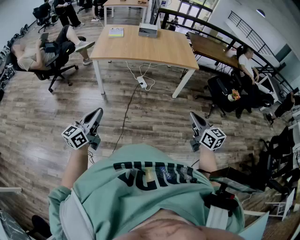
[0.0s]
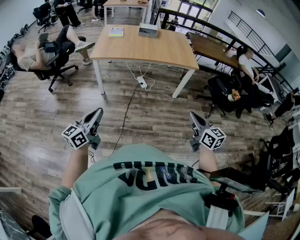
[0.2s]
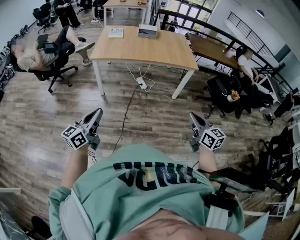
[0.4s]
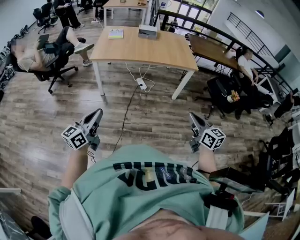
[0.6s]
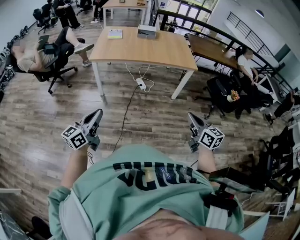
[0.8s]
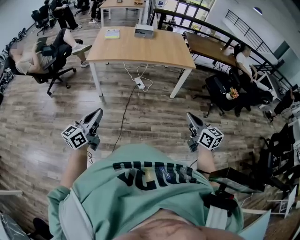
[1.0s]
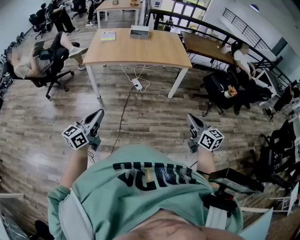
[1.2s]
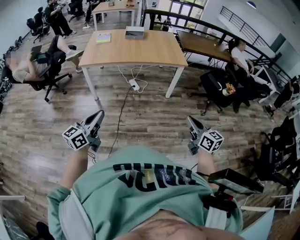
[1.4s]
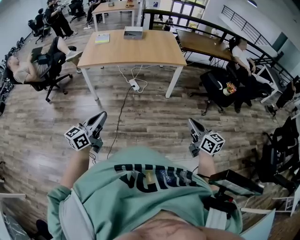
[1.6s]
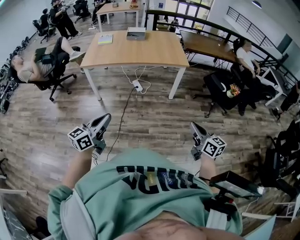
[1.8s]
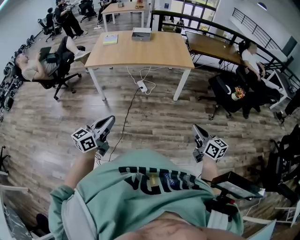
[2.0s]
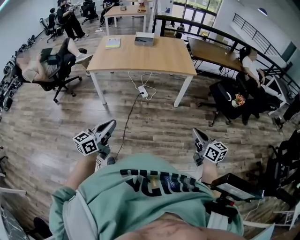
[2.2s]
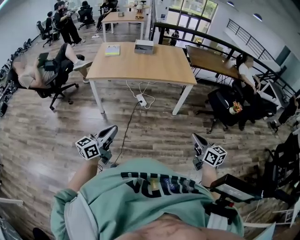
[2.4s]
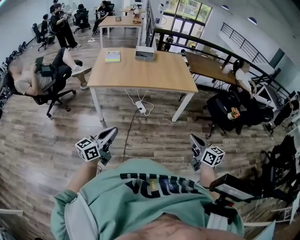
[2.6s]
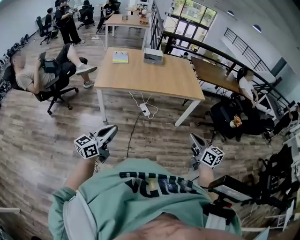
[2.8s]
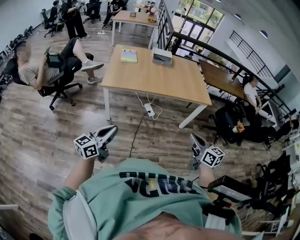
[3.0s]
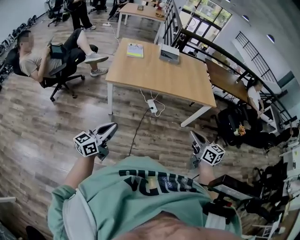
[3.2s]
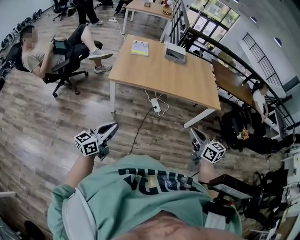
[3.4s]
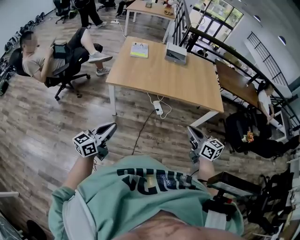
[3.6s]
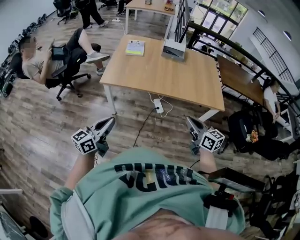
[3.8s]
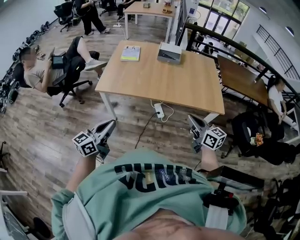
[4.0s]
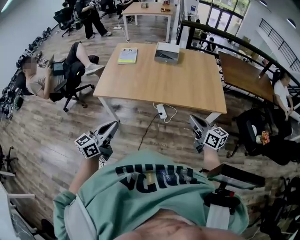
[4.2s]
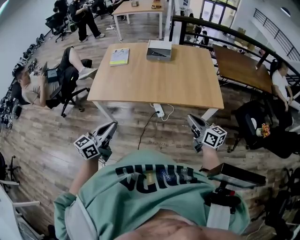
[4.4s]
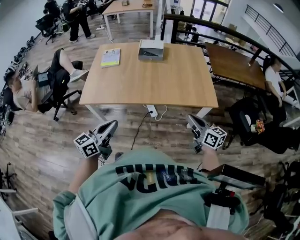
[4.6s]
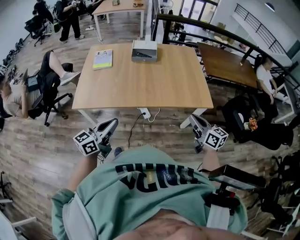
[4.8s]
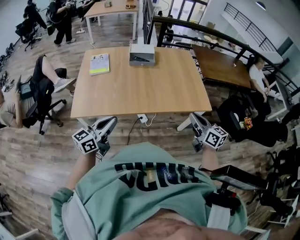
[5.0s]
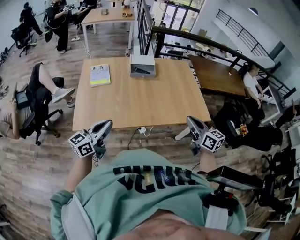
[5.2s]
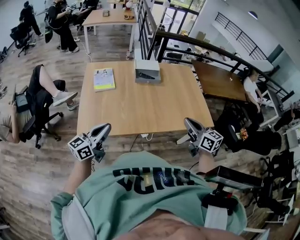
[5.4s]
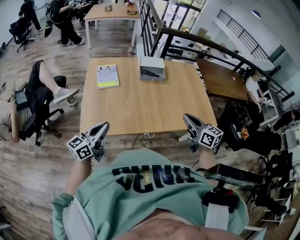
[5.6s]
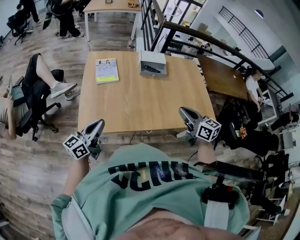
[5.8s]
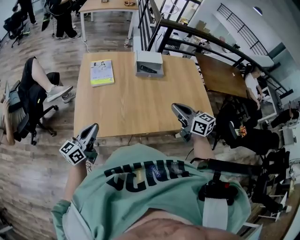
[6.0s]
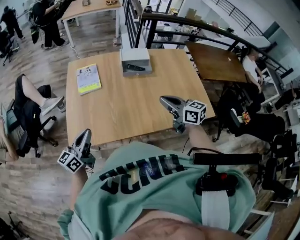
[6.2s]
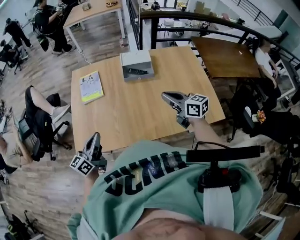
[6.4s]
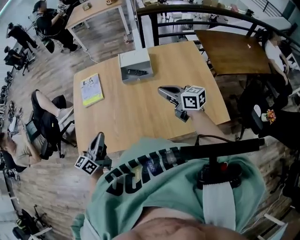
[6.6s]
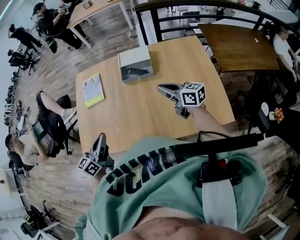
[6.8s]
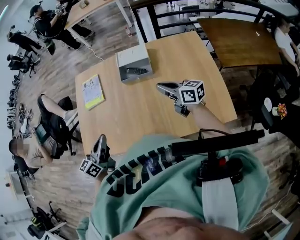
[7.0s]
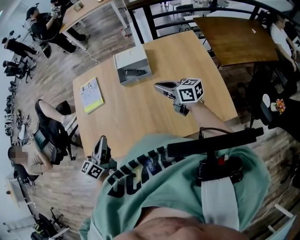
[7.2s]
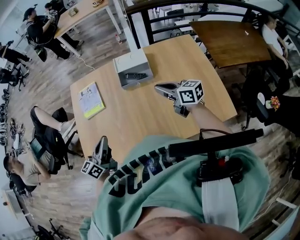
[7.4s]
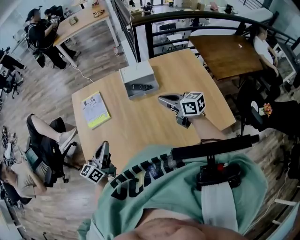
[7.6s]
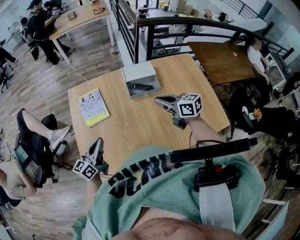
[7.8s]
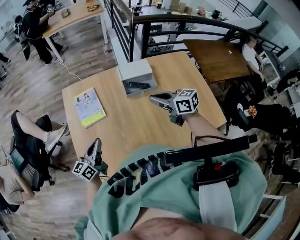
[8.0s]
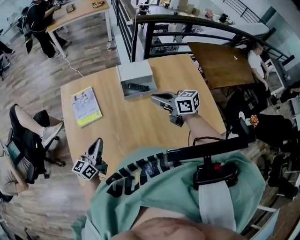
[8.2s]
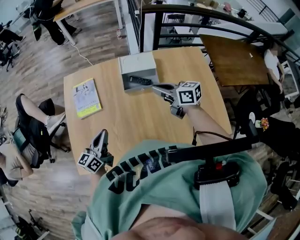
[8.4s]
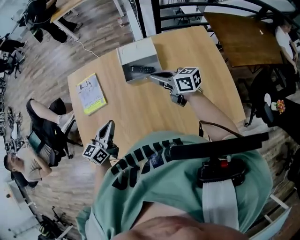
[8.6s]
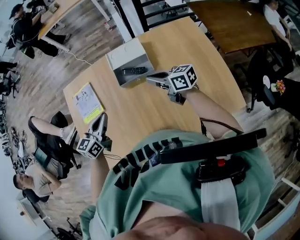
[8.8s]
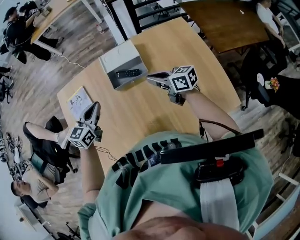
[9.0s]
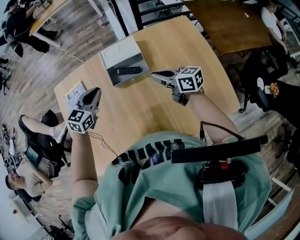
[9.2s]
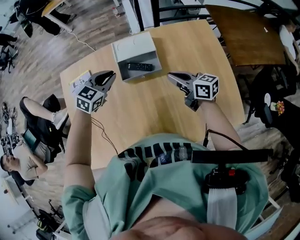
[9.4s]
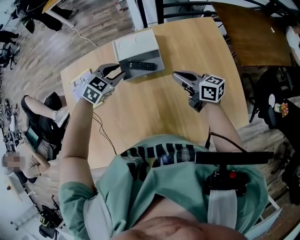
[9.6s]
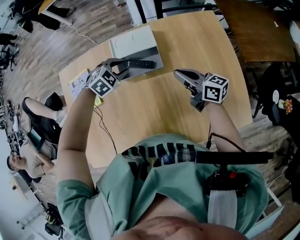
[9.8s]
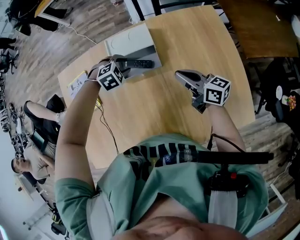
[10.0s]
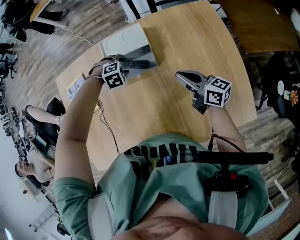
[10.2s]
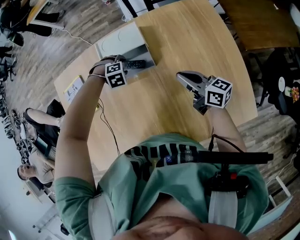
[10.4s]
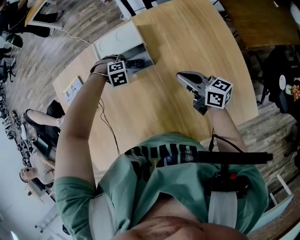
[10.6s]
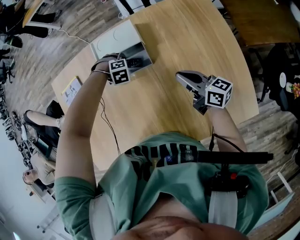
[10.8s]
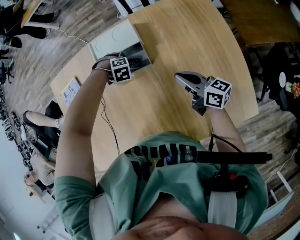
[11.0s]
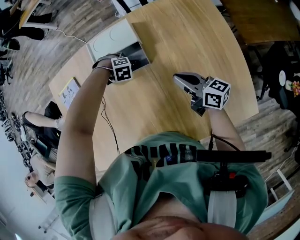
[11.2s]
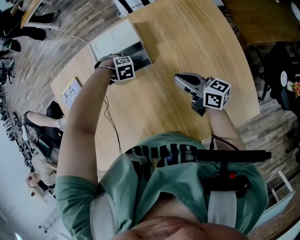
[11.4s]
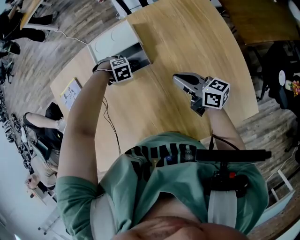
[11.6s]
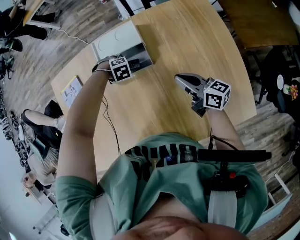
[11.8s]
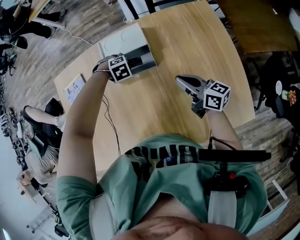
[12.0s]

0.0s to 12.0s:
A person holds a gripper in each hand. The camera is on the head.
0.0s to 1.6s: The two grippers go about 15 cm to the right.
1.6s to 3.0s: Both grippers move to the left and forward, approximately 35 cm.
3.0s to 4.4s: Both grippers move forward and to the right, approximately 35 cm.
4.4s to 6.0s: The grippers both shift to the left and forward by roughly 40 cm.
6.0s to 7.6s: The grippers both shift forward and to the right by roughly 25 cm.
7.6s to 9.0s: The left gripper heads forward and to the right, covering roughly 25 cm, and changes its angle by roughly 30 degrees. The right gripper travels forward, downward and to the right by approximately 15 cm.
9.0s to 10.4s: The right gripper shifts by roughly 15 cm, while the left gripper heads downward, covering approximately 25 cm, tips its fingers downward by roughly 60 degrees, and opens its fingers.

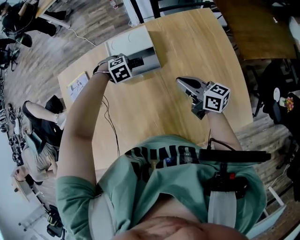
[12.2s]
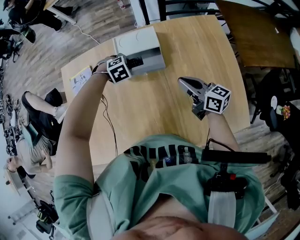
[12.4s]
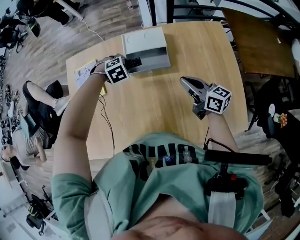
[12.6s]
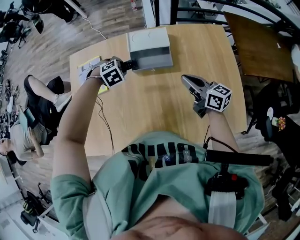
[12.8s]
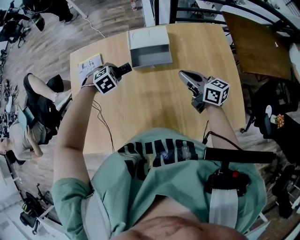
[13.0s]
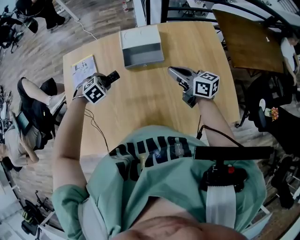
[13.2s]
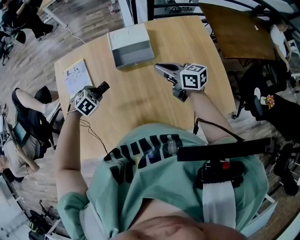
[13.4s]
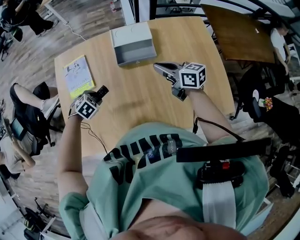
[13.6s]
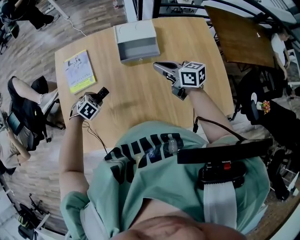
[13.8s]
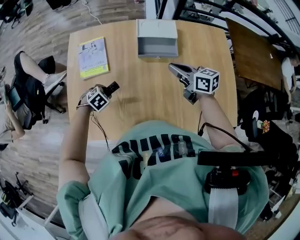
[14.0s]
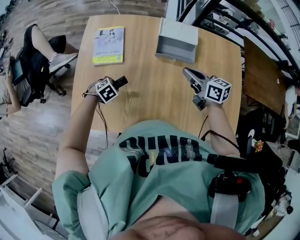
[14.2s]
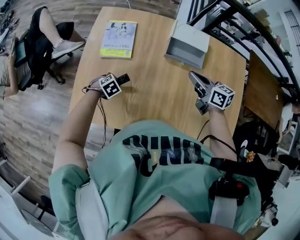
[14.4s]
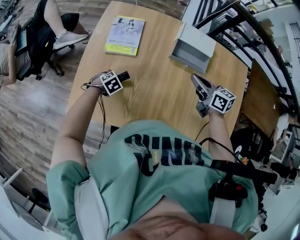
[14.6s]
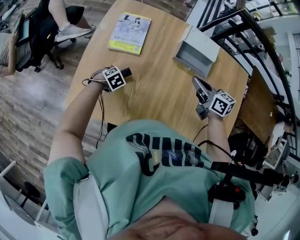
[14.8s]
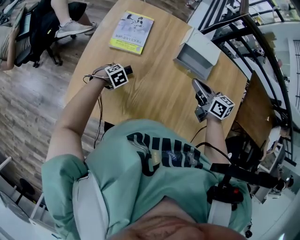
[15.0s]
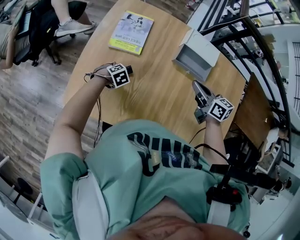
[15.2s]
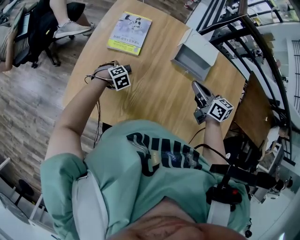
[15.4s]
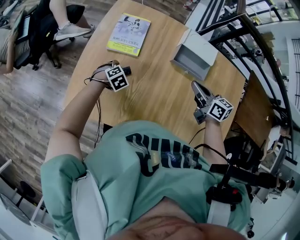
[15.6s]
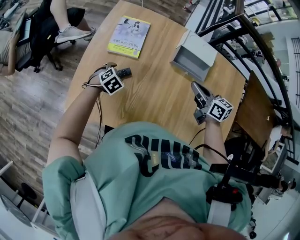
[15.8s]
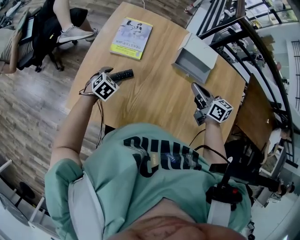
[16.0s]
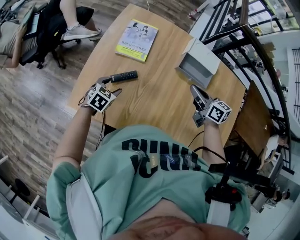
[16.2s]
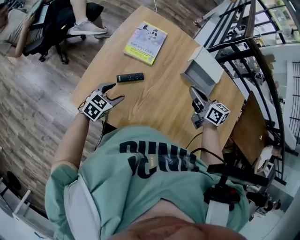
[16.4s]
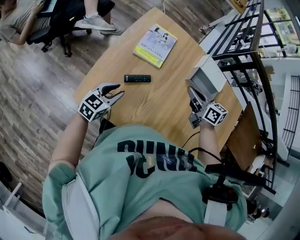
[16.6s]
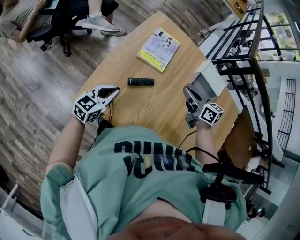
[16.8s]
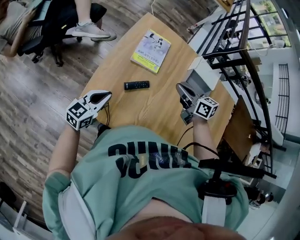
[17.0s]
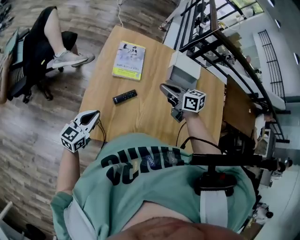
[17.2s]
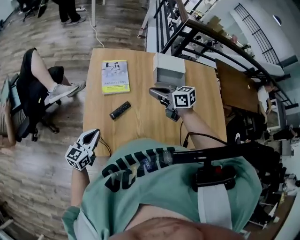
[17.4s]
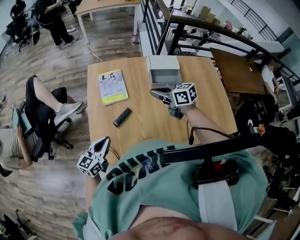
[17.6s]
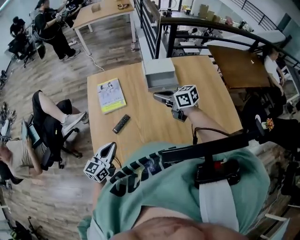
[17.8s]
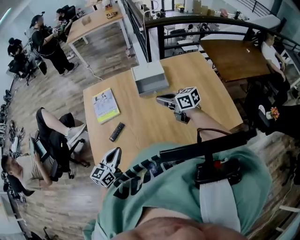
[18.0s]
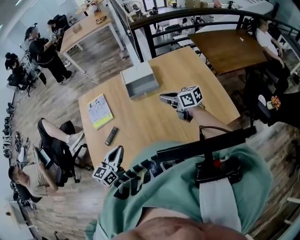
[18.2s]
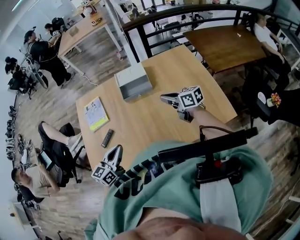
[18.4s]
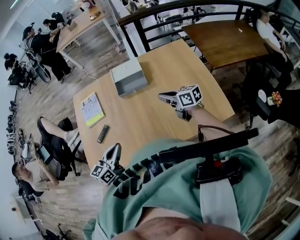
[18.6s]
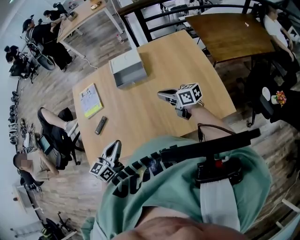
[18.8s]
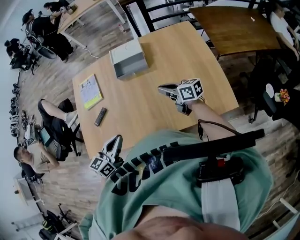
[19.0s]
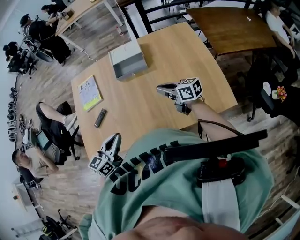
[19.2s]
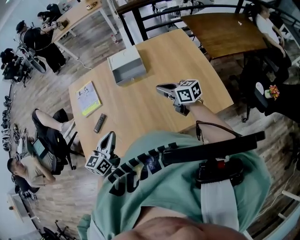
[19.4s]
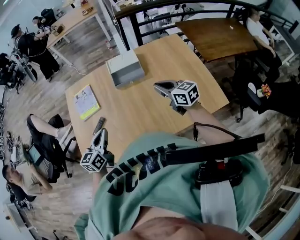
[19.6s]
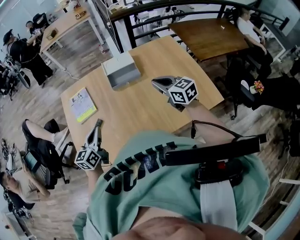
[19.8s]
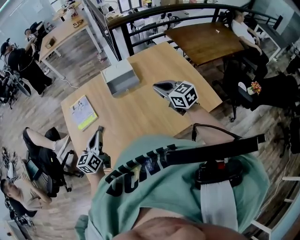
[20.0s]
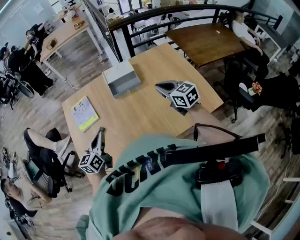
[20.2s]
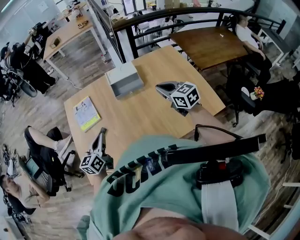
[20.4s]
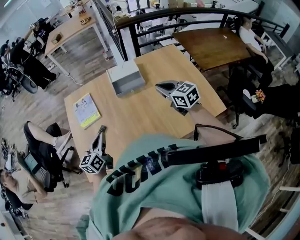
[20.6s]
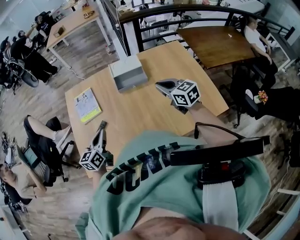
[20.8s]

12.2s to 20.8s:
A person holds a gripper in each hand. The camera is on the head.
12.2s to 13.6s: The right gripper ends up approximately 15 cm from where it was. The left gripper moves about 10 cm upward and comes back, and swivels some 30 degrees.
13.6s to 15.0s: The right gripper ends up roughly 10 cm from where it was. Meanwhile the left gripper ends up roughly 15 cm from where it was, and changes its angle by roughly 20 degrees.
15.0s to 16.6s: The left gripper shifts roughly 15 cm upward, tilts its fingers about 50 degrees upward, and opens and closes again. The right gripper ends up approximately 10 cm from where it was.
16.6s to 18.0s: The left gripper shifts roughly 20 cm upward, to the right and backward, changes its angle by some 20 degrees, and closes; the right gripper goes some 20 cm to the right, backward and upward.
18.0s to 19.4s: Both grippers travel together to the right, about 15 cm.
19.4s to 20.8s: The left gripper shifts roughly 10 cm to the left and forward, while the right gripper shifts some 10 cm upward, and rotates approximately 30 degrees.

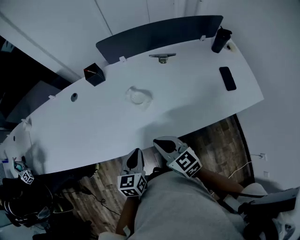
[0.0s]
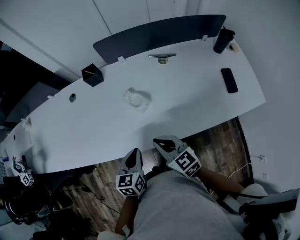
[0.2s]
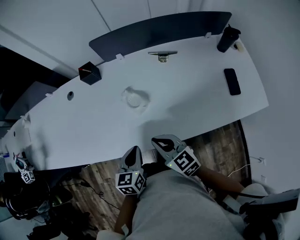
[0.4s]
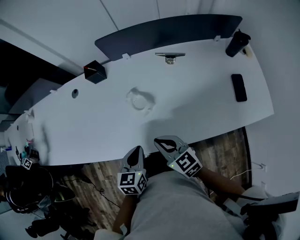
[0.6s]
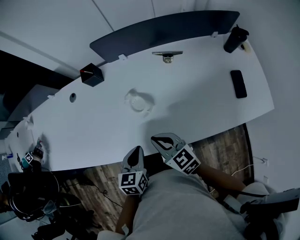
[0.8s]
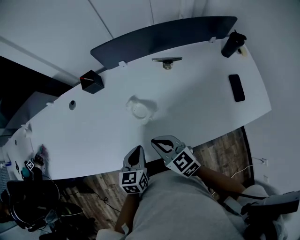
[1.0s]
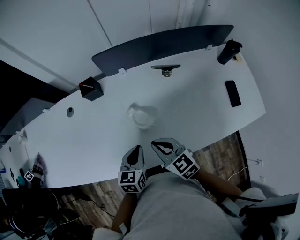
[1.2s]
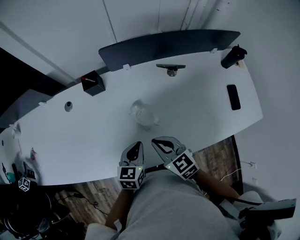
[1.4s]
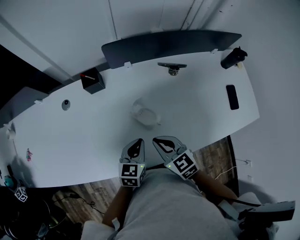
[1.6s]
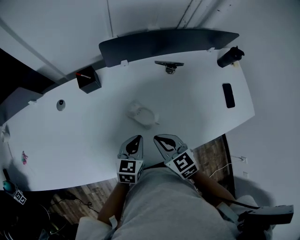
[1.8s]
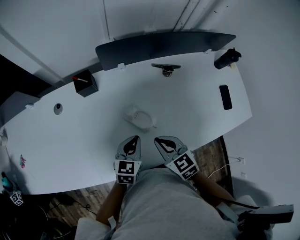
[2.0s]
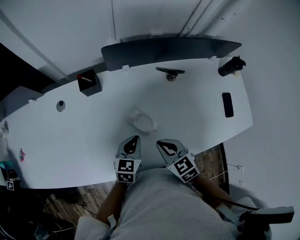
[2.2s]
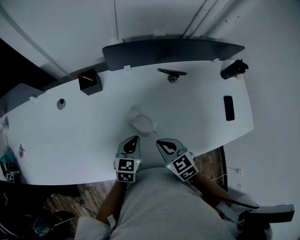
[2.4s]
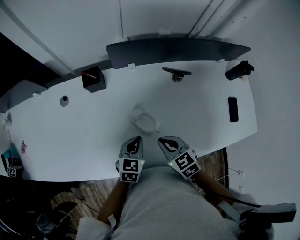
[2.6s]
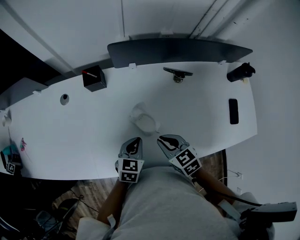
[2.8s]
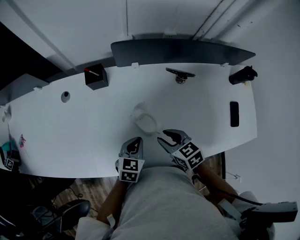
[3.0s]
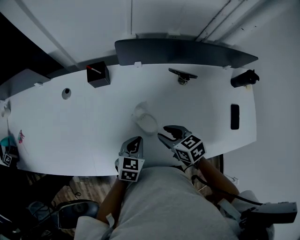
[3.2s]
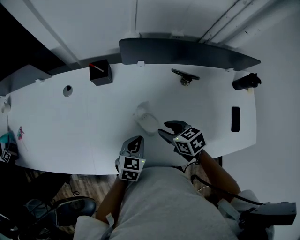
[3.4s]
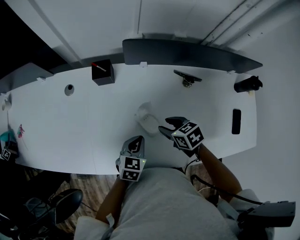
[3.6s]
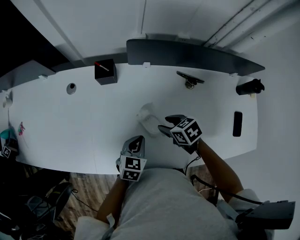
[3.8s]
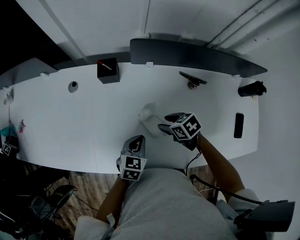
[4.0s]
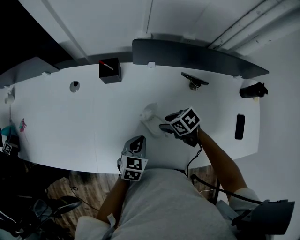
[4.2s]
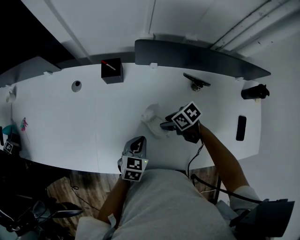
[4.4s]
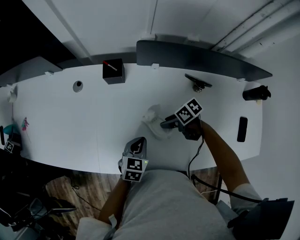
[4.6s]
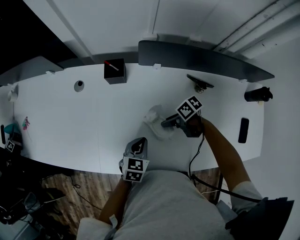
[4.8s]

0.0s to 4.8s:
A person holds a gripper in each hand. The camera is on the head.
0.0s to 1.6s: The grippers both shift forward by some 15 cm.
1.6s to 3.2s: The right gripper shifts approximately 10 cm forward and to the right, swivels approximately 20 degrees, and opens; the left gripper shifts by about 5 cm.
3.2s to 4.8s: The right gripper shifts some 10 cm downward, and swivels approximately 50 degrees.
